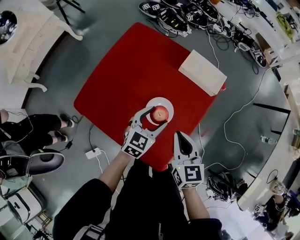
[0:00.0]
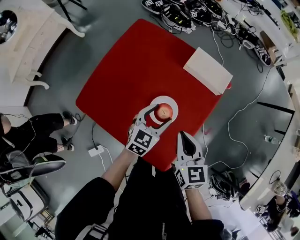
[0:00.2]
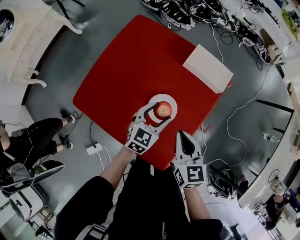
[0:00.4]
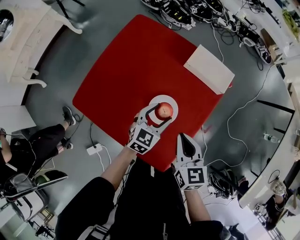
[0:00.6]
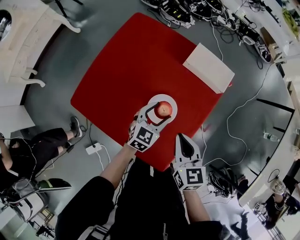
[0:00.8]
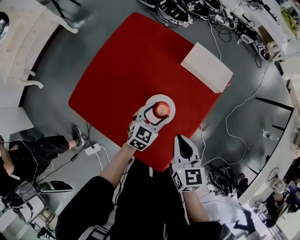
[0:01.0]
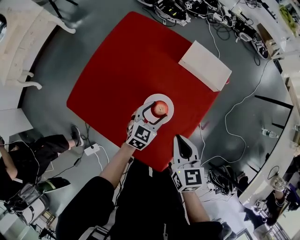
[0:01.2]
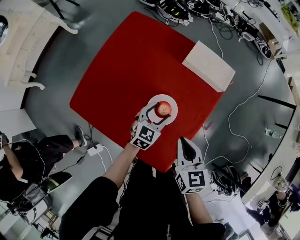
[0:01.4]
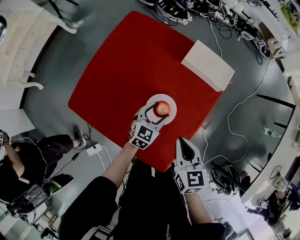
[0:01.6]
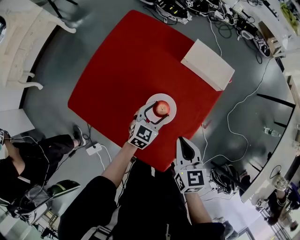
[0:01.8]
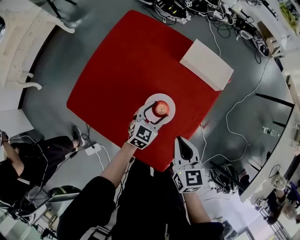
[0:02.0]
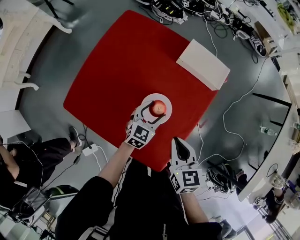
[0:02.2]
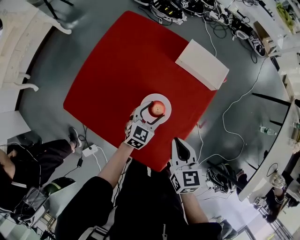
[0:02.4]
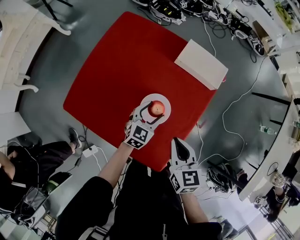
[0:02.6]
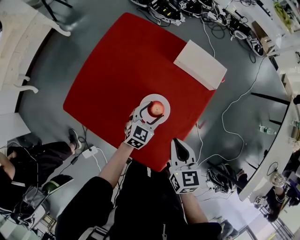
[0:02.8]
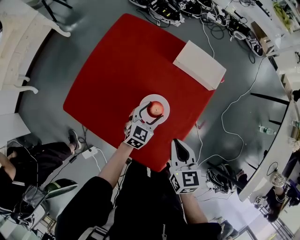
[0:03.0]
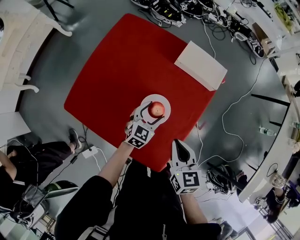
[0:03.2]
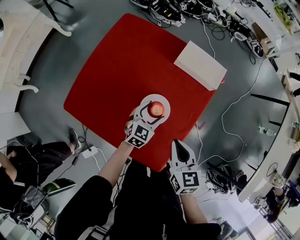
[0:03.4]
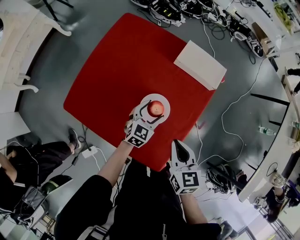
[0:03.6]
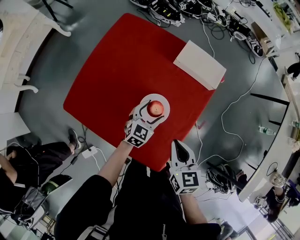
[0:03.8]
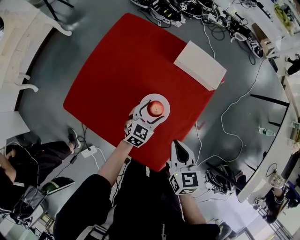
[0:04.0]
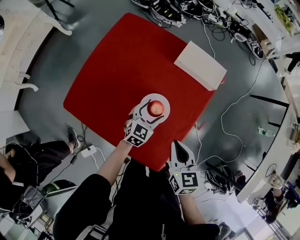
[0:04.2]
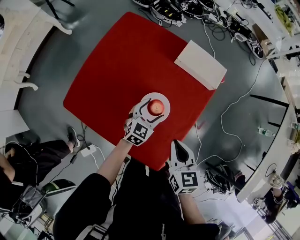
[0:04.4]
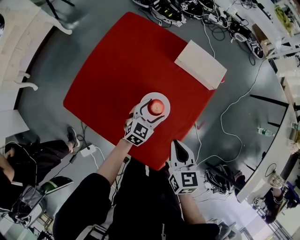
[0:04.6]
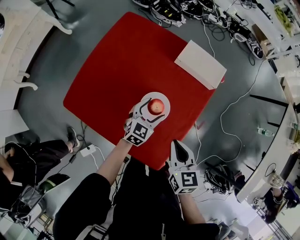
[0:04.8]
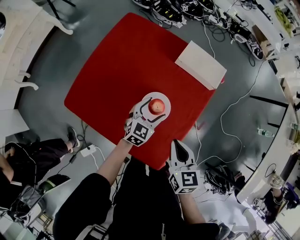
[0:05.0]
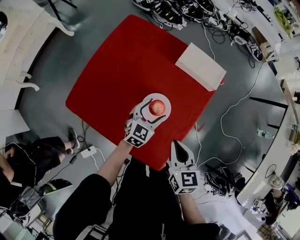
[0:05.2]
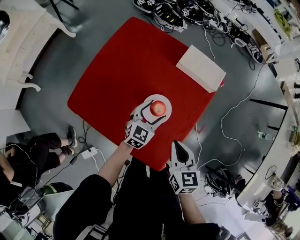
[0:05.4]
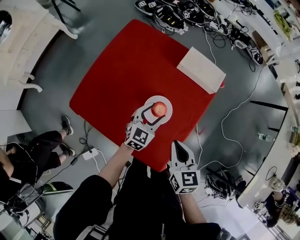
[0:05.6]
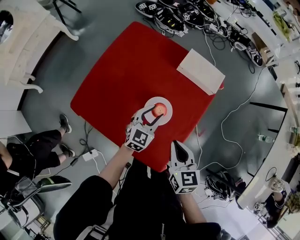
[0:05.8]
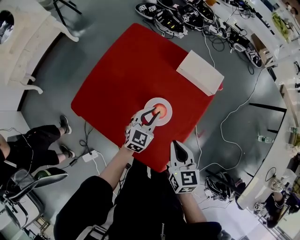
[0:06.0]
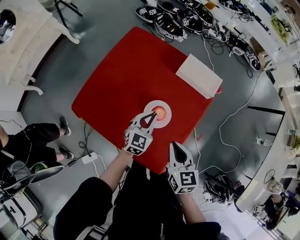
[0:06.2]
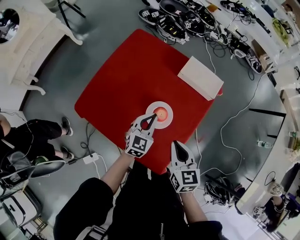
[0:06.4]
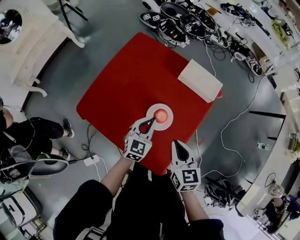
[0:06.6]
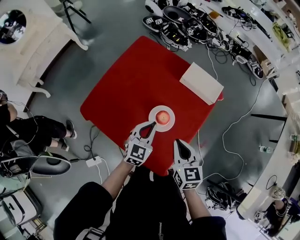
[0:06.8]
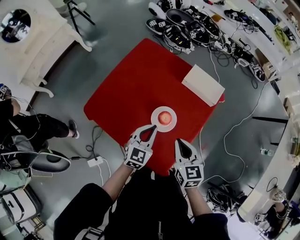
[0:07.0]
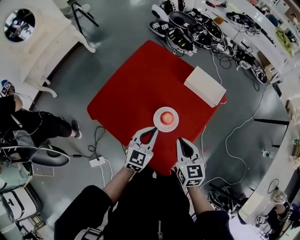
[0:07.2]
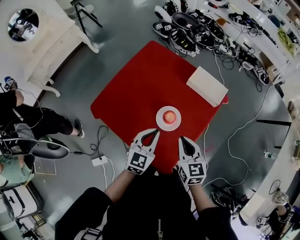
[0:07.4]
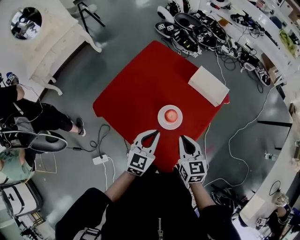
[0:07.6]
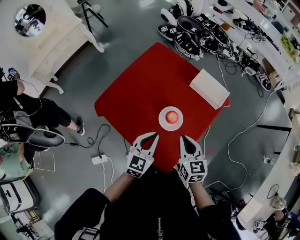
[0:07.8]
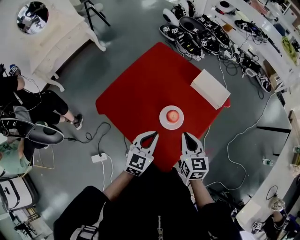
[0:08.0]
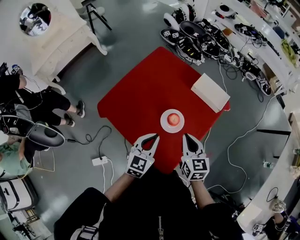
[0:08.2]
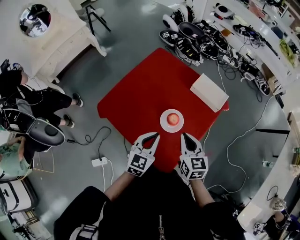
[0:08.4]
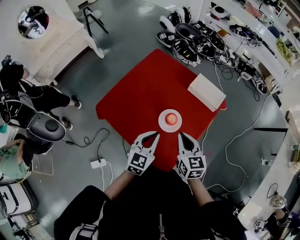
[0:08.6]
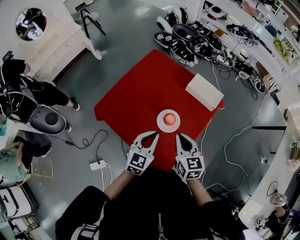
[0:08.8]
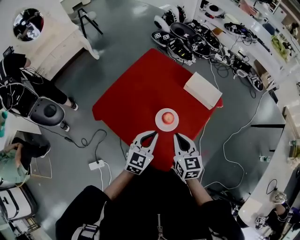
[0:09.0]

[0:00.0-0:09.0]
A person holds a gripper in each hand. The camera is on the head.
0:00.0 to 0:01.6: The left gripper shifts approximately 10 cm downward; the right gripper heads downward, covering approximately 5 cm.
0:01.6 to 0:03.0: The two grippers keep their place.
0:03.0 to 0:04.4: The two grippers keep their place.
0:04.4 to 0:06.0: The left gripper travels upward by about 5 cm, and closes.
0:06.0 to 0:07.6: The left gripper is displaced upward and backward by approximately 15 cm.
0:07.6 to 0:09.0: The grippers make only small movements.

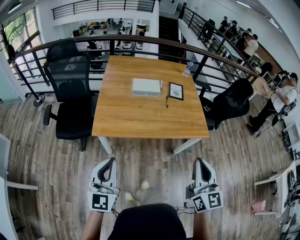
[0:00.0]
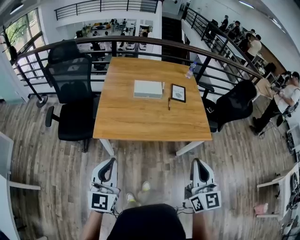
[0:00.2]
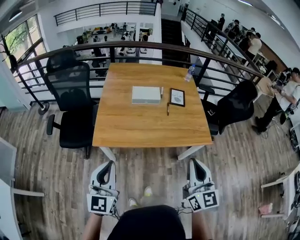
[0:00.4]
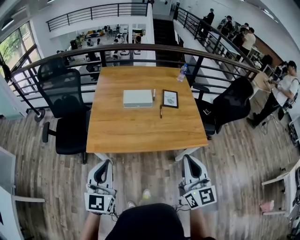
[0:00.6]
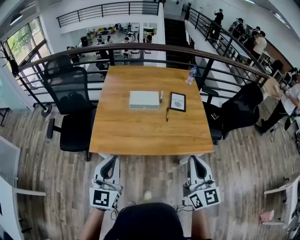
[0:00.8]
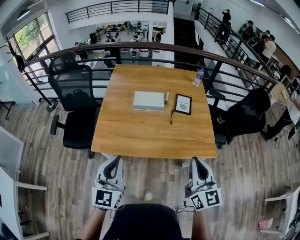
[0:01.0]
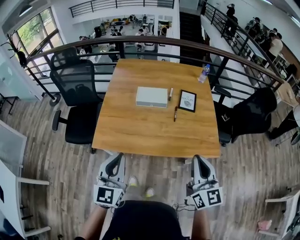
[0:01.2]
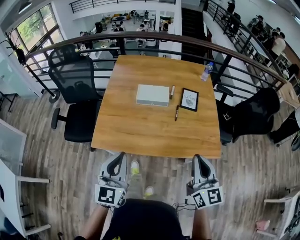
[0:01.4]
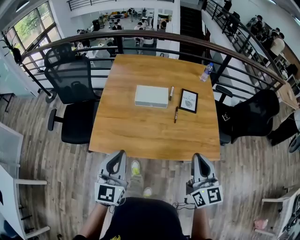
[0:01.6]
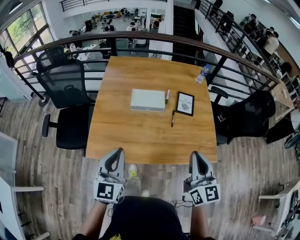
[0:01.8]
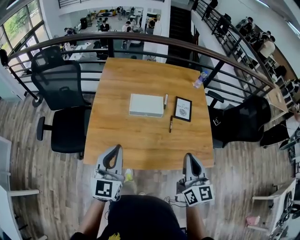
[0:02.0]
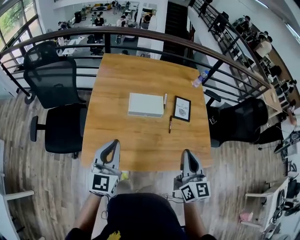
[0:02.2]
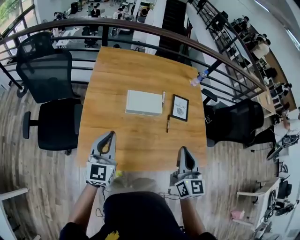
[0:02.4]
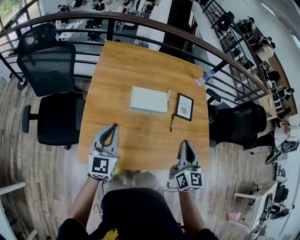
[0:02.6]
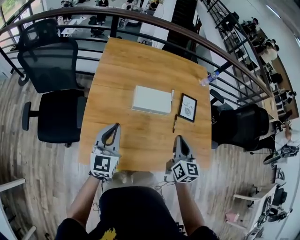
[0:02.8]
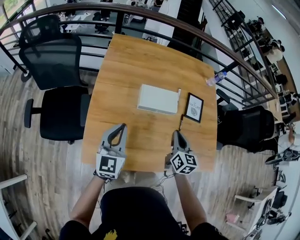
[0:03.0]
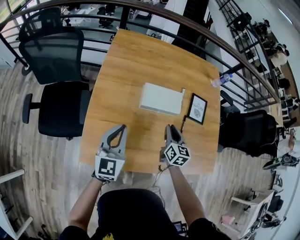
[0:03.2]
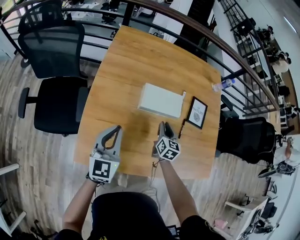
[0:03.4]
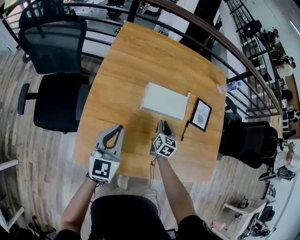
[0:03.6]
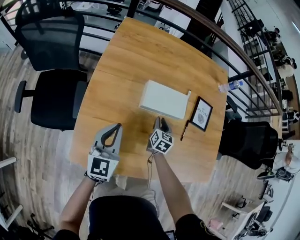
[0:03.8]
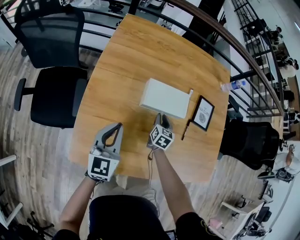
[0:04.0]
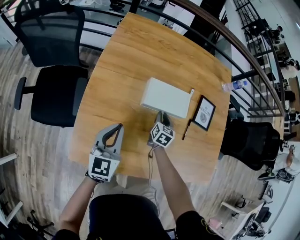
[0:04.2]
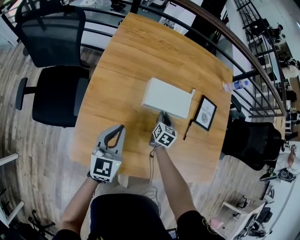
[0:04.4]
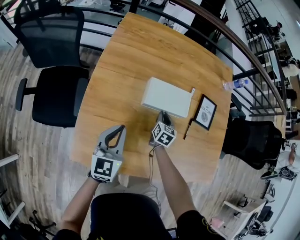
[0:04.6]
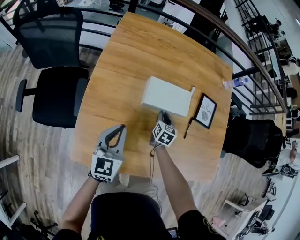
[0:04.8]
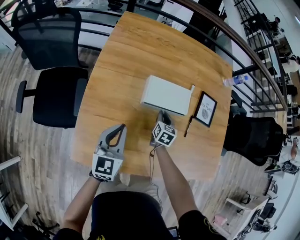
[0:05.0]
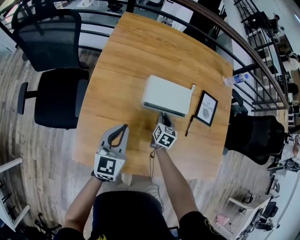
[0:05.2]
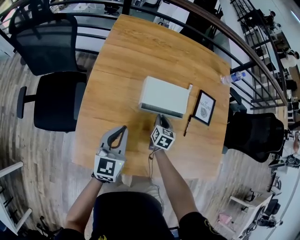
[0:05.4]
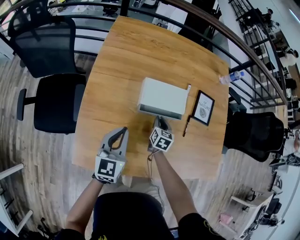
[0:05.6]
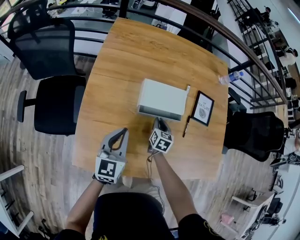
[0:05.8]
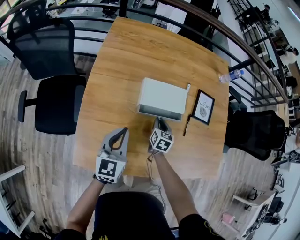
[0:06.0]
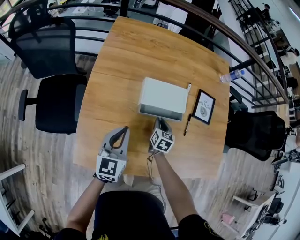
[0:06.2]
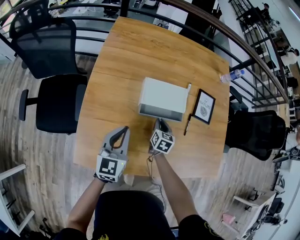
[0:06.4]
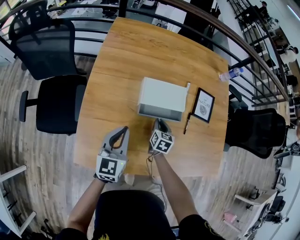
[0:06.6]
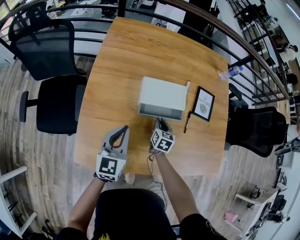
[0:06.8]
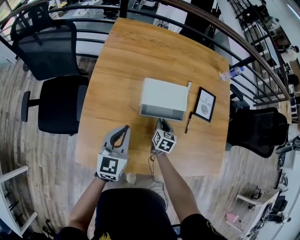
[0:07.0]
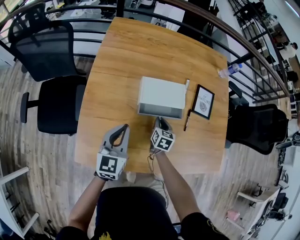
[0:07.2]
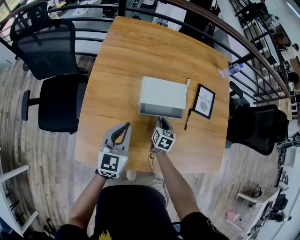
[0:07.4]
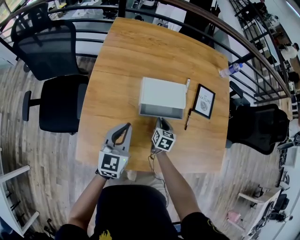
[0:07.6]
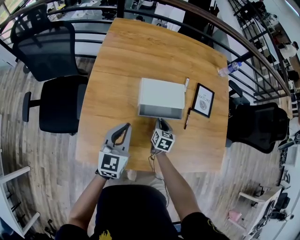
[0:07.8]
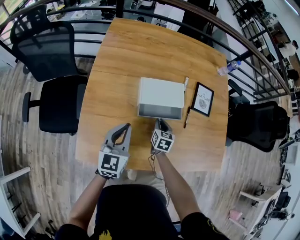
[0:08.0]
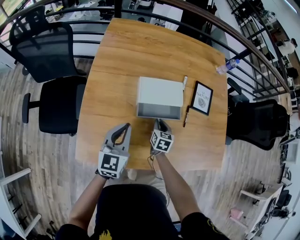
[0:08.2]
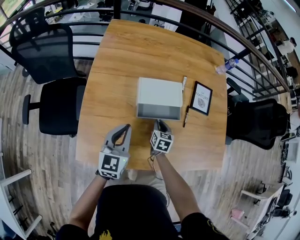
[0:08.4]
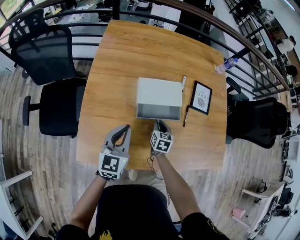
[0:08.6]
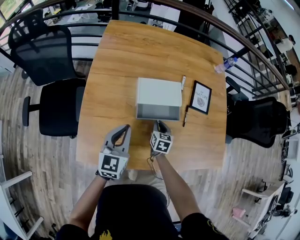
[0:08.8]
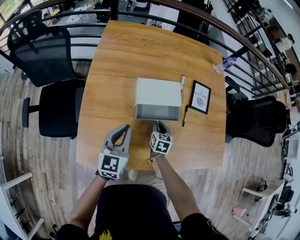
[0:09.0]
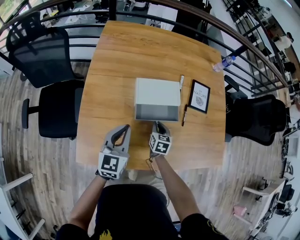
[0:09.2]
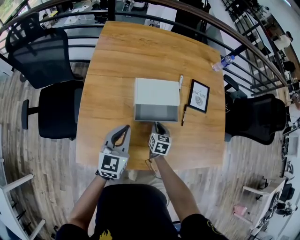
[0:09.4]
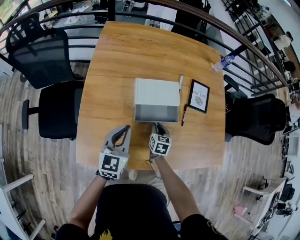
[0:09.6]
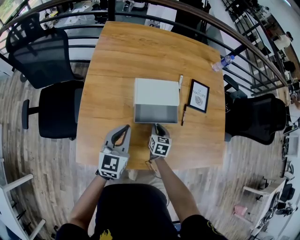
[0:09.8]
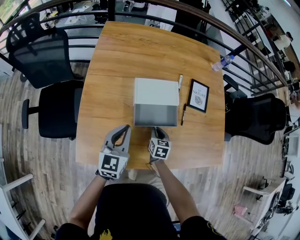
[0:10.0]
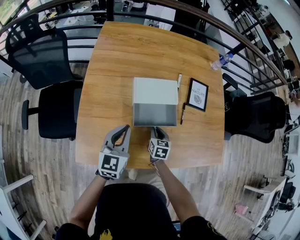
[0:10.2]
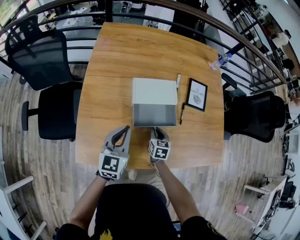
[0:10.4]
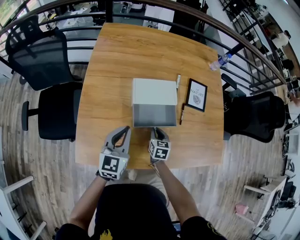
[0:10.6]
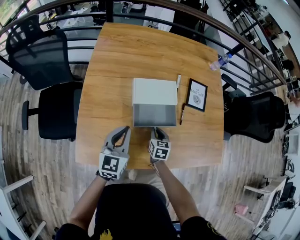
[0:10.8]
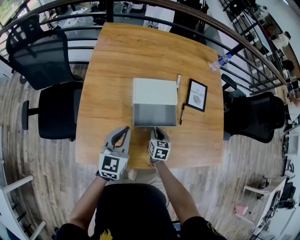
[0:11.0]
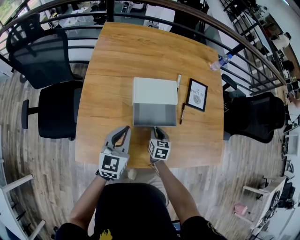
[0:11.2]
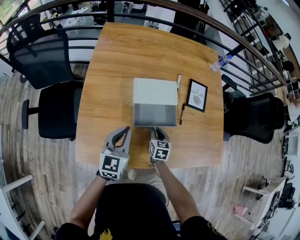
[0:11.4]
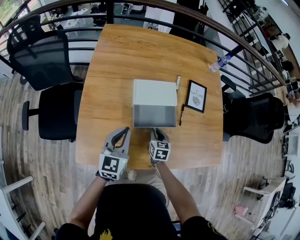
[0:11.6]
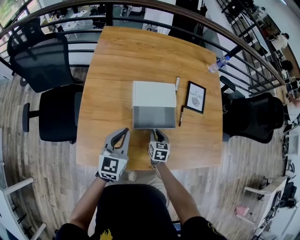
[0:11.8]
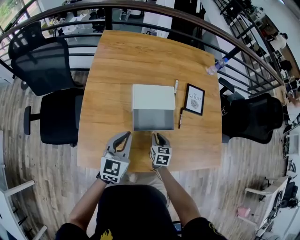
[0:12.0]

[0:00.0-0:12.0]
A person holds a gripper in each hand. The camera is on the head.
0:00.0 to 0:01.6: The left gripper goes approximately 25 cm forward and to the right. Meanwhile the right gripper is displaced forward by about 25 cm.
0:01.6 to 0:03.0: The left gripper heads forward, to the left and downward, covering roughly 30 cm; the right gripper is displaced forward, downward and to the left by approximately 35 cm, and rotates approximately 20 degrees.
0:03.0 to 0:04.4: The right gripper travels downward and forward by approximately 25 cm. The left gripper shifts approximately 10 cm downward.
0:04.4 to 0:06.0: The grippers move only a little.
0:06.0 to 0:07.6: There are only small adjustments of the grippers.
0:07.6 to 0:09.0: The grippers stay close to where they were, moving slightly.
0:09.0 to 0:12.0: The grippers stay close to where they were, moving slightly.

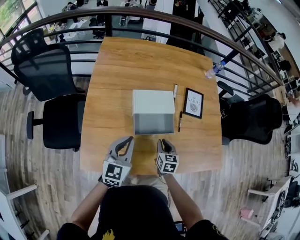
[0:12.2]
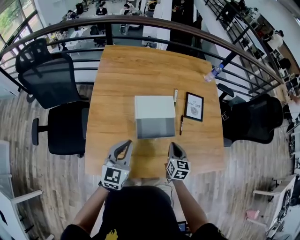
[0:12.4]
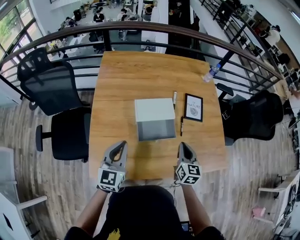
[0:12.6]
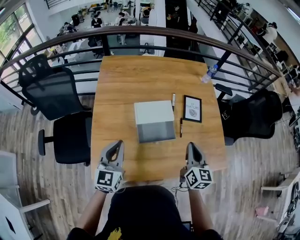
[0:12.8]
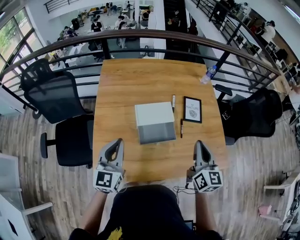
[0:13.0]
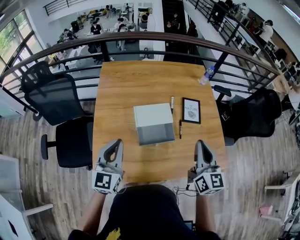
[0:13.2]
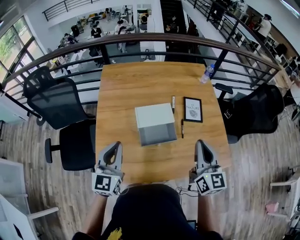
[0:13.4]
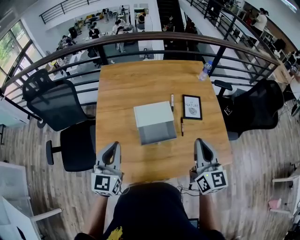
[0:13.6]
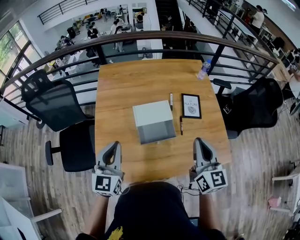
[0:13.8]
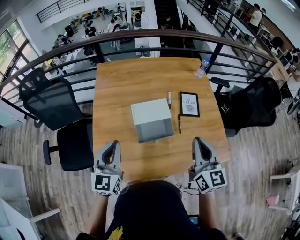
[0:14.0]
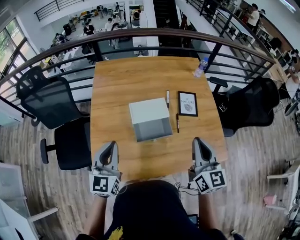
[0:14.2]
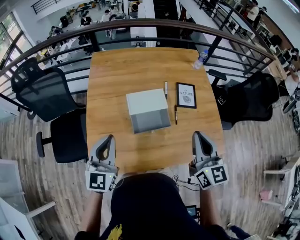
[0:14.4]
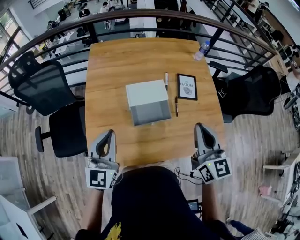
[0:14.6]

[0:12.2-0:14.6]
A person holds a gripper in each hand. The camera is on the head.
0:12.2 to 0:13.4: The right gripper shifts approximately 30 cm upward, and points its fingers roughly 40 degrees further upward, while the left gripper is displaced upward by about 15 cm.
0:13.4 to 0:14.6: The grippers make only small movements.
